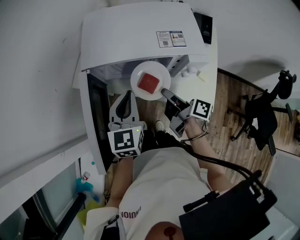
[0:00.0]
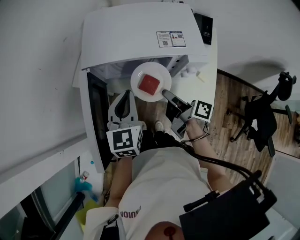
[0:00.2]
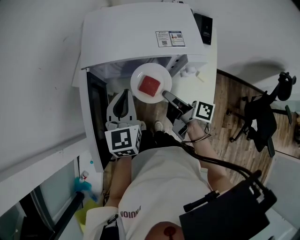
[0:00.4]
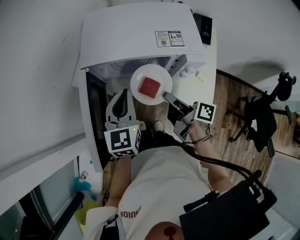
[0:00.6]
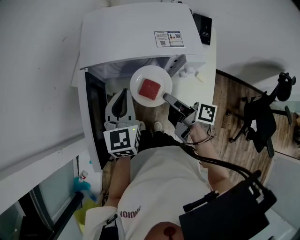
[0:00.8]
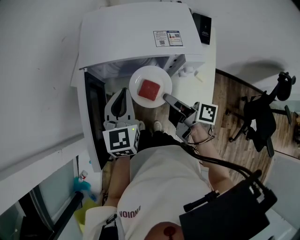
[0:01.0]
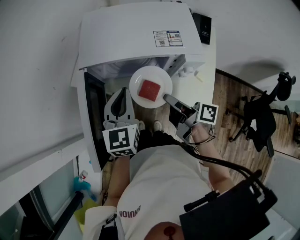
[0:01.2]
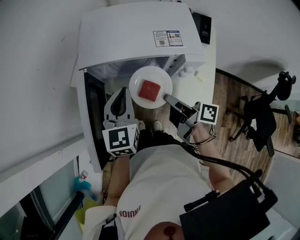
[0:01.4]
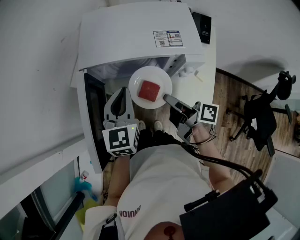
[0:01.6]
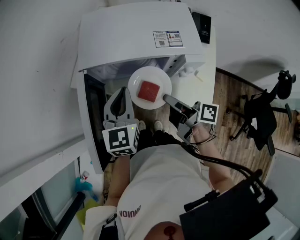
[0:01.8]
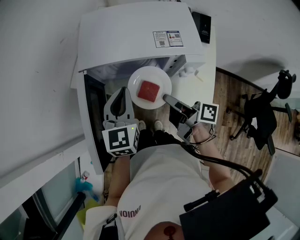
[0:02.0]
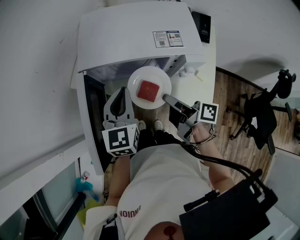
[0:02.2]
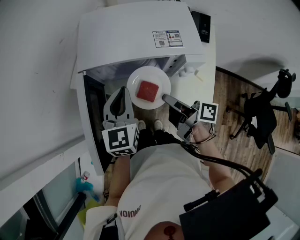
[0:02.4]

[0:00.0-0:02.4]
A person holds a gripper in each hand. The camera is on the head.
0:00.0 to 0:01.2: There are only small adjustments of the grippers.
0:01.2 to 0:02.4: Both grippers stay about where they are.

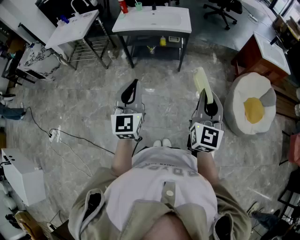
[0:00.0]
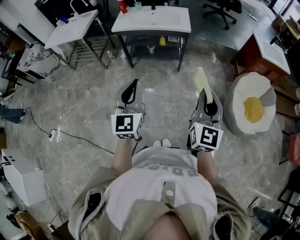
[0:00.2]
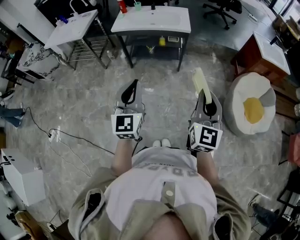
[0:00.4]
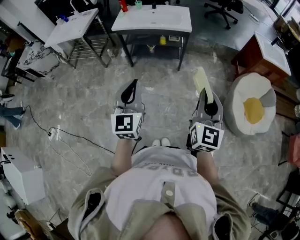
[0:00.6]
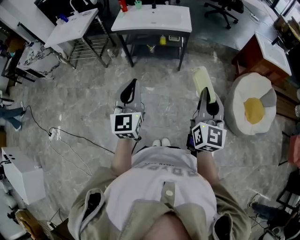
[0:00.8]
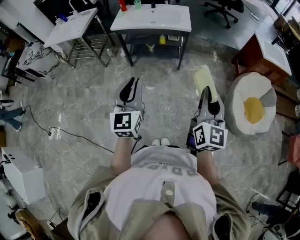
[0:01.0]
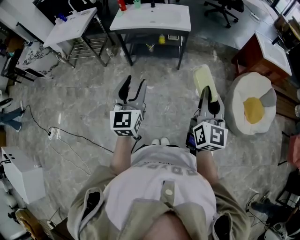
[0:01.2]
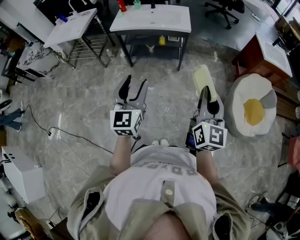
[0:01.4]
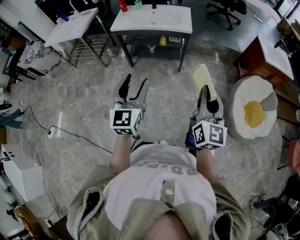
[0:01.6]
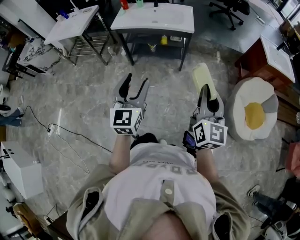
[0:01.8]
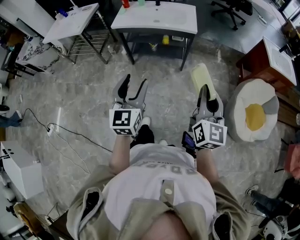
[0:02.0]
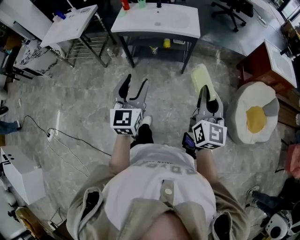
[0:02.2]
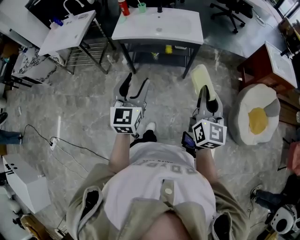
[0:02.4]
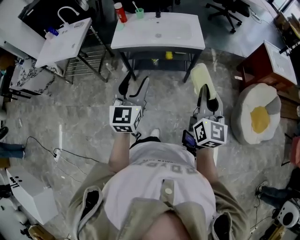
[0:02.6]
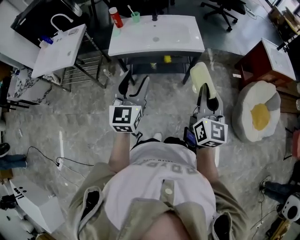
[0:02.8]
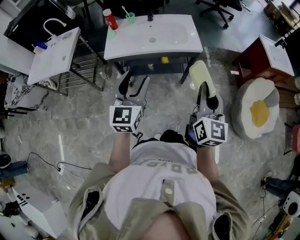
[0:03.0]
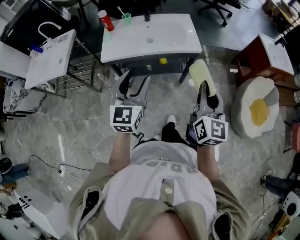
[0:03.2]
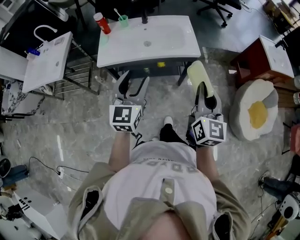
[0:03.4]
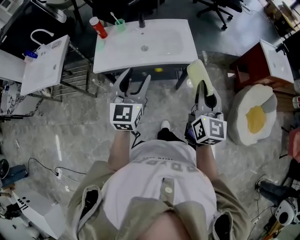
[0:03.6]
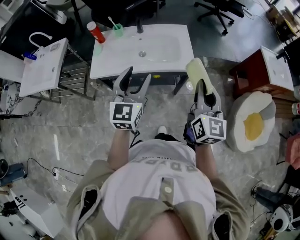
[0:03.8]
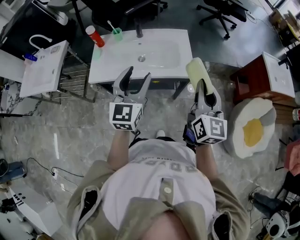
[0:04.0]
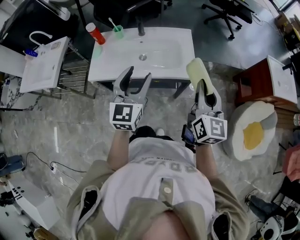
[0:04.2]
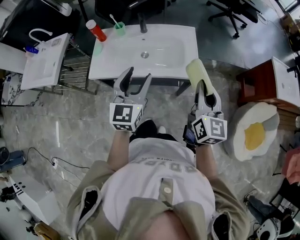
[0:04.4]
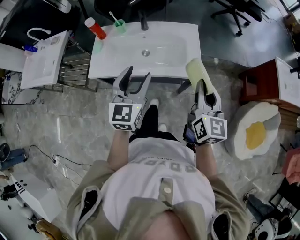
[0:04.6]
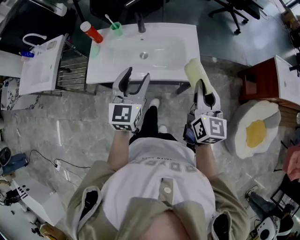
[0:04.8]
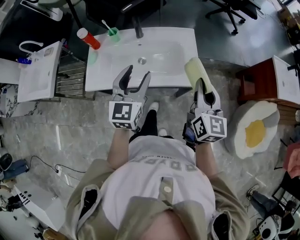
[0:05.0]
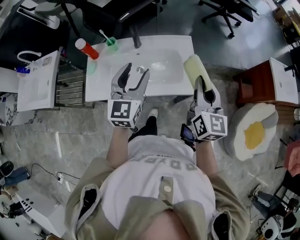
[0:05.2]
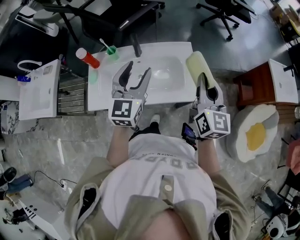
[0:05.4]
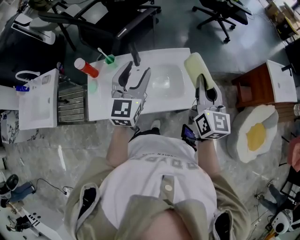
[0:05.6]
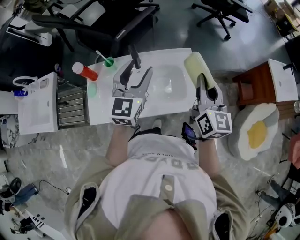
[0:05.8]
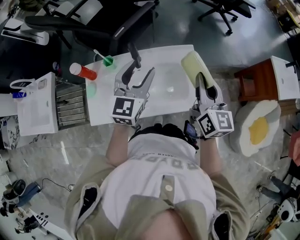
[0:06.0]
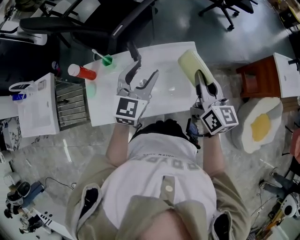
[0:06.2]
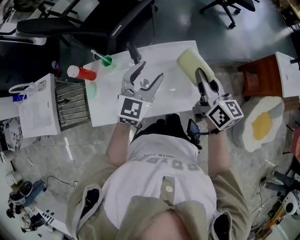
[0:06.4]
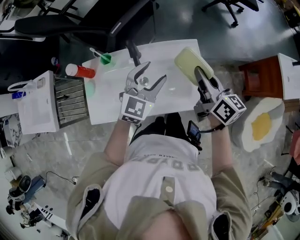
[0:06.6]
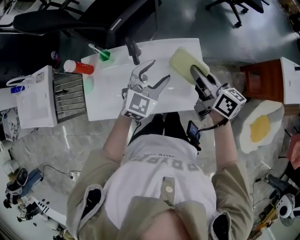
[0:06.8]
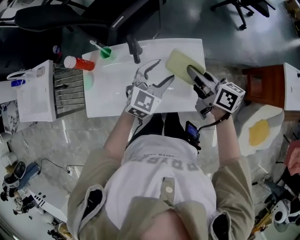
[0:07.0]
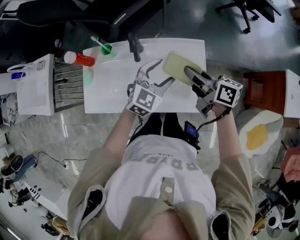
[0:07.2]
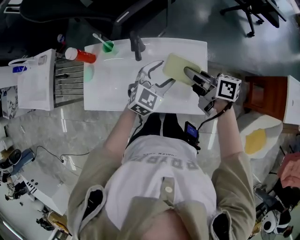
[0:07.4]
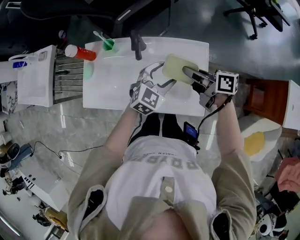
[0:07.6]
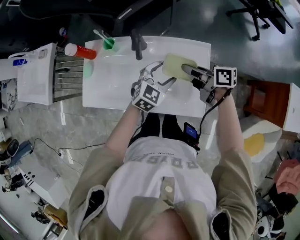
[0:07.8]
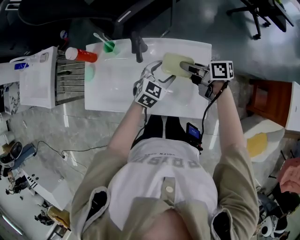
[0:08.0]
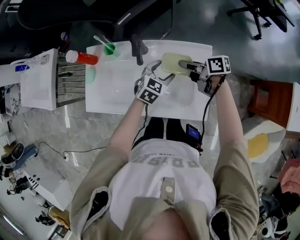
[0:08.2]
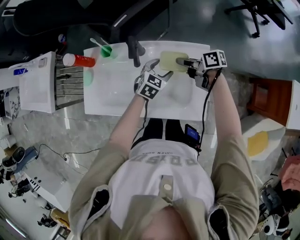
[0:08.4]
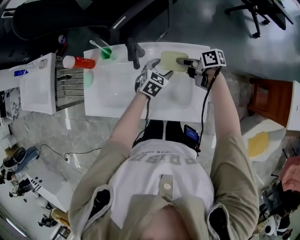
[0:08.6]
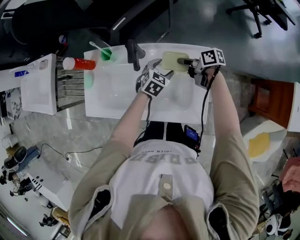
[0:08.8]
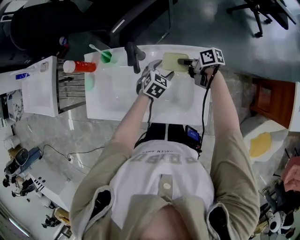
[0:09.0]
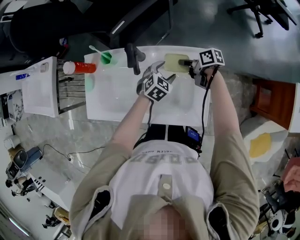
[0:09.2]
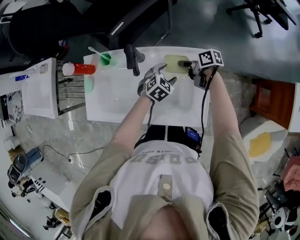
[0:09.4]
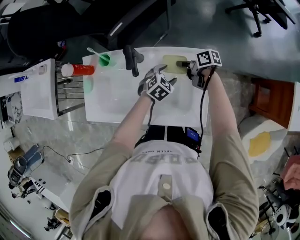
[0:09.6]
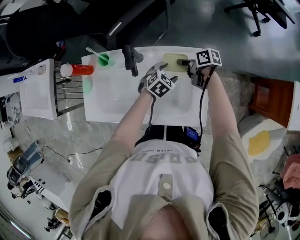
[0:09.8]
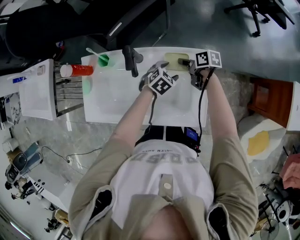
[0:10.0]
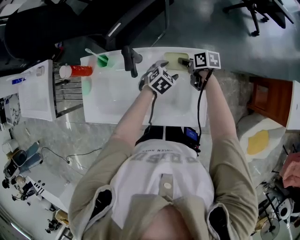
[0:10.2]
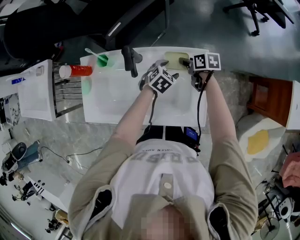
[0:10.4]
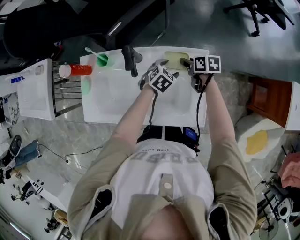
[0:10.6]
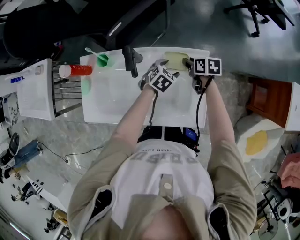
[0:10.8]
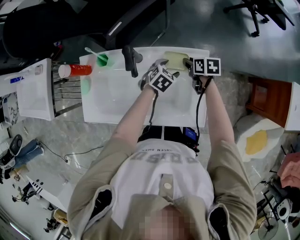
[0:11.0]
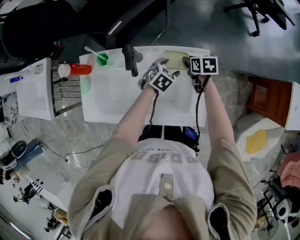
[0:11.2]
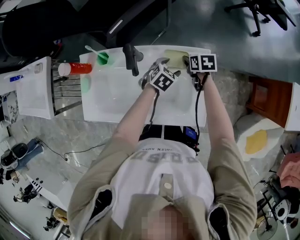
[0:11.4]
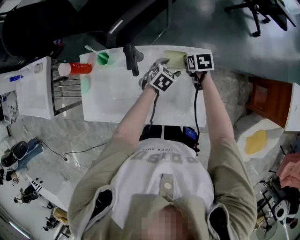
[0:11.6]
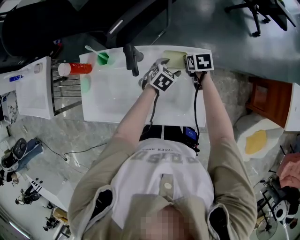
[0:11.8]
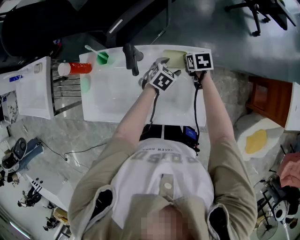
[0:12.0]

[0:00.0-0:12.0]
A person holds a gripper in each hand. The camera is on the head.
0:00.0 to 0:01.6: The two grippers go approximately 5 cm forward. The left gripper opens up.
0:01.6 to 0:03.0: Both grippers move forward and to the left, roughly 30 cm.
0:03.0 to 0:04.4: The grippers both shift forward by some 25 cm.
0:04.4 to 0:06.0: The two grippers go approximately 25 cm forward.
0:06.0 to 0:07.6: The grippers both shift downward by some 15 cm. The left gripper swivels roughly 30 degrees. The right gripper changes its angle by some 70 degrees.
0:07.6 to 0:09.0: The grippers both shift downward and forward by some 15 cm. The left gripper rotates about 20 degrees. The right gripper swivels approximately 20 degrees.
0:09.0 to 0:10.4: The right gripper changes its angle by approximately 20 degrees, and opens.
0:10.4 to 0:12.0: The right gripper changes its angle by roughly 20 degrees.

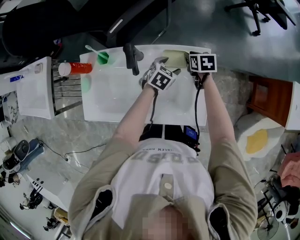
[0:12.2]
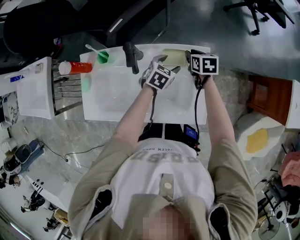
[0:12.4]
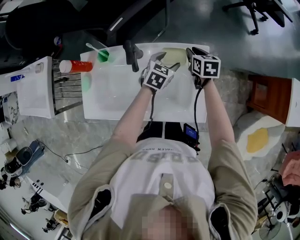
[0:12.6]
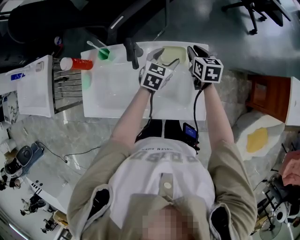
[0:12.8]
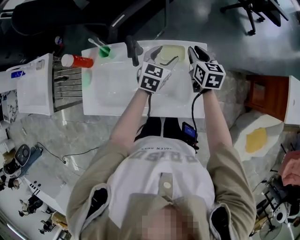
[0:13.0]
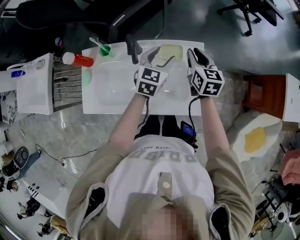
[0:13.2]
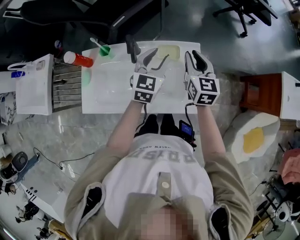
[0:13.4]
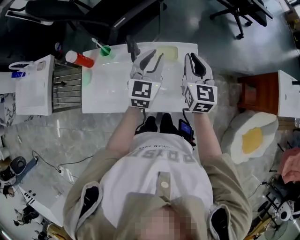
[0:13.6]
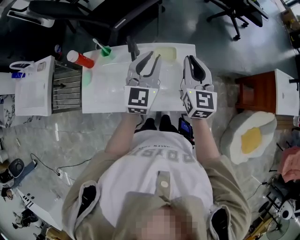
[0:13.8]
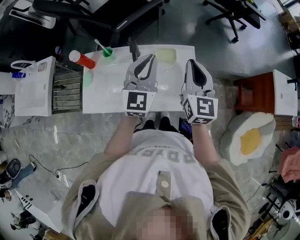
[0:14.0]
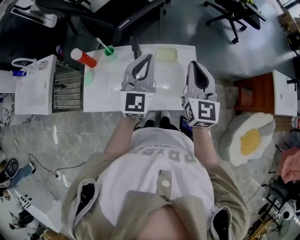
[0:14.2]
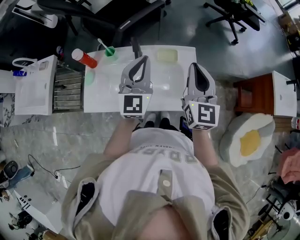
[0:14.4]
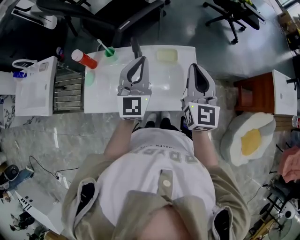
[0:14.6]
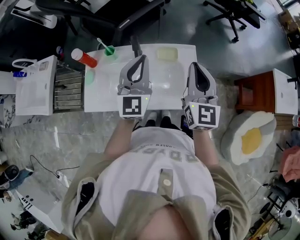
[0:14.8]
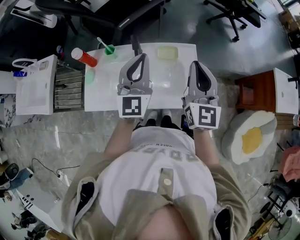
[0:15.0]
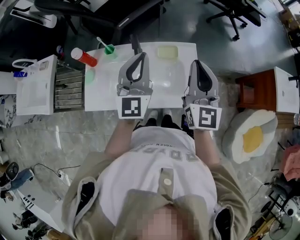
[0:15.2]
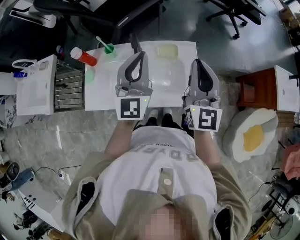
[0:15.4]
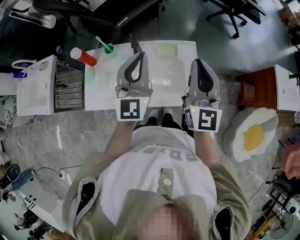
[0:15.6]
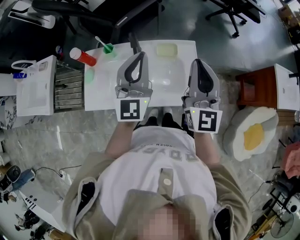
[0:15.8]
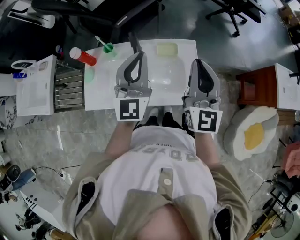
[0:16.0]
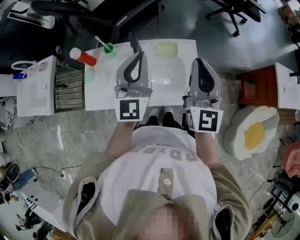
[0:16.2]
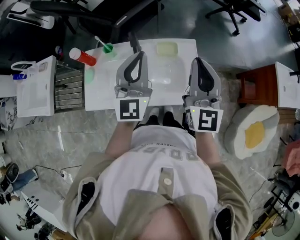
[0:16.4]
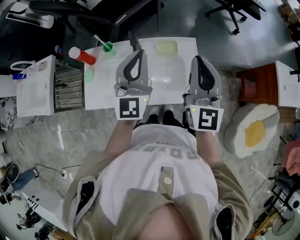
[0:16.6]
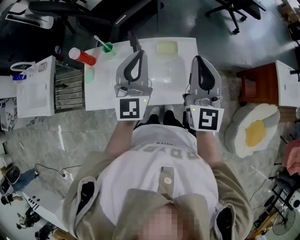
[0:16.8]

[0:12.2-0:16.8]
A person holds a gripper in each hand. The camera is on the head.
0:12.2 to 0:13.8: The left gripper goes roughly 30 cm upward, points its fingers roughly 50 degrees further upward, and closes its fingers. The right gripper goes some 35 cm upward and backward, and points its fingers about 50 degrees further upward.
0:13.8 to 0:15.2: The left gripper moves upward, about 5 cm, while the right gripper moves upward and backward, roughly 10 cm.
0:15.2 to 0:16.8: The grippers make only small movements.

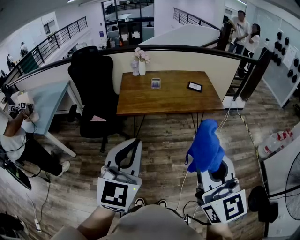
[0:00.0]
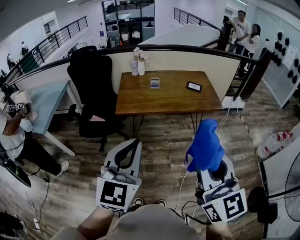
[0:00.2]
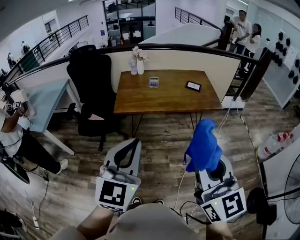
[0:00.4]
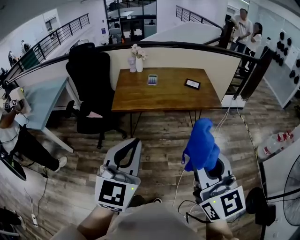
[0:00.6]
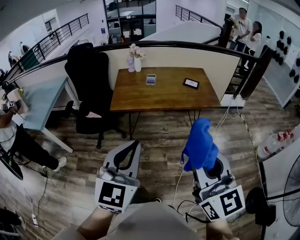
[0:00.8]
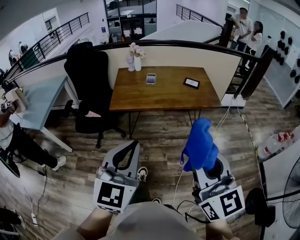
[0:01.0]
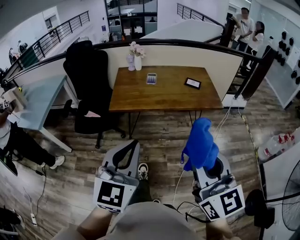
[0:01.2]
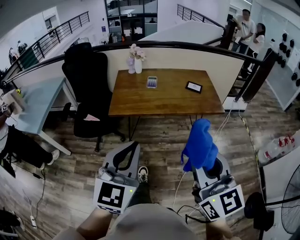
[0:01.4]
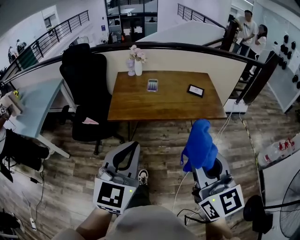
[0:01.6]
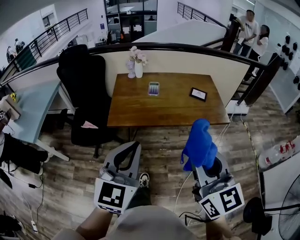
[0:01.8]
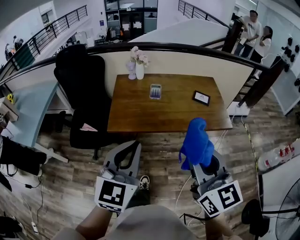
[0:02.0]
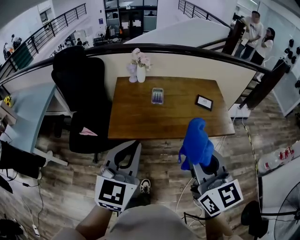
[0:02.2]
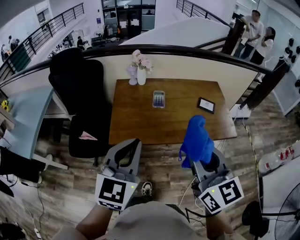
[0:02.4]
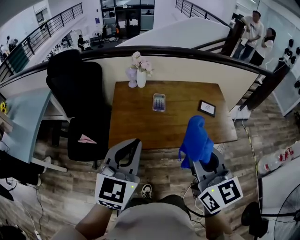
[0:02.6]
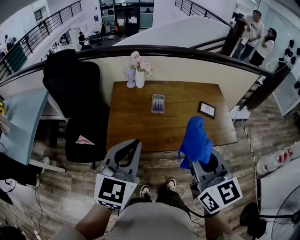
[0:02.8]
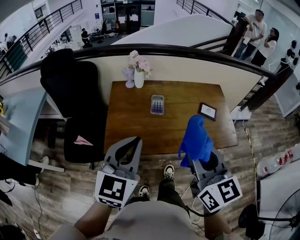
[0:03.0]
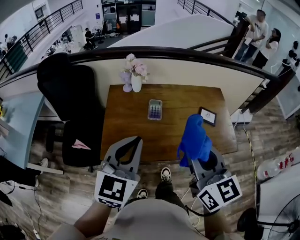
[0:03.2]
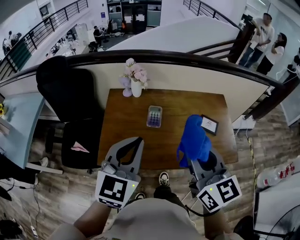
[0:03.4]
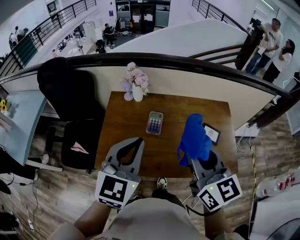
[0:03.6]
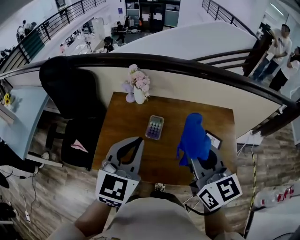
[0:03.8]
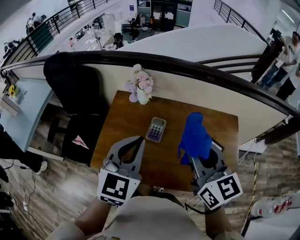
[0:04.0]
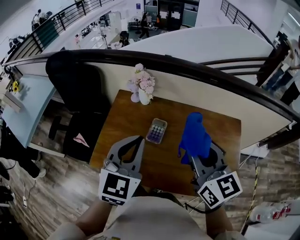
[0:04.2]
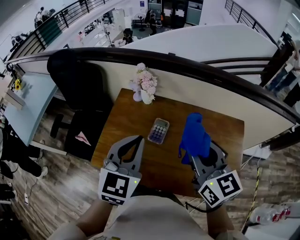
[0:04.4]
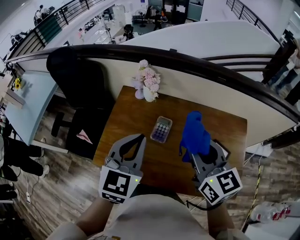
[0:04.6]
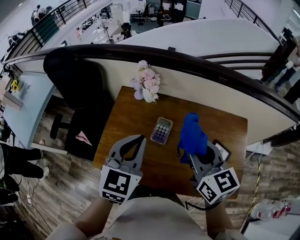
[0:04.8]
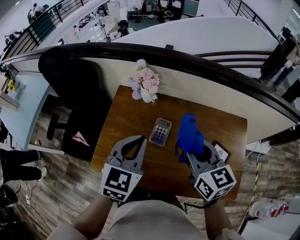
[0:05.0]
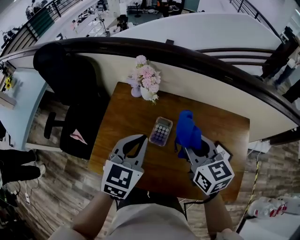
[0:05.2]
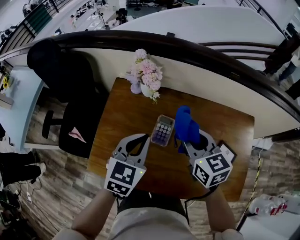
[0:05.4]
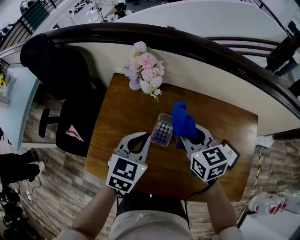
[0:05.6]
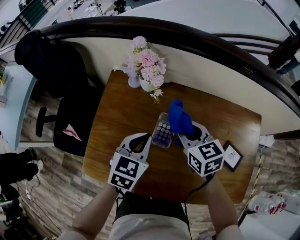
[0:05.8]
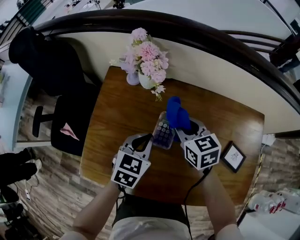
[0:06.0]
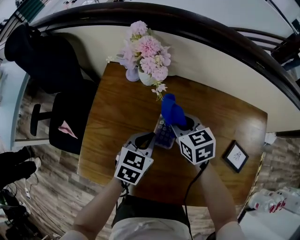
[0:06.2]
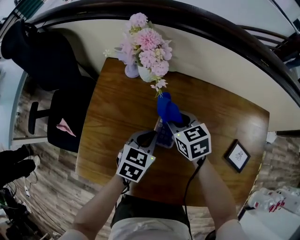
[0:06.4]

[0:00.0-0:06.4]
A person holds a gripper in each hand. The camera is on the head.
0:00.0 to 0:01.6: The grippers both shift forward by about 15 cm.
0:01.6 to 0:03.2: The two grippers go some 40 cm forward.
0:03.2 to 0:04.8: The left gripper travels forward and to the right by some 20 cm. Meanwhile the right gripper heads forward, covering about 25 cm, and turns by some 20 degrees.
0:04.8 to 0:06.4: The left gripper heads downward, covering approximately 35 cm, and rotates approximately 30 degrees, while the right gripper shifts about 40 cm downward and forward, and swivels about 30 degrees.